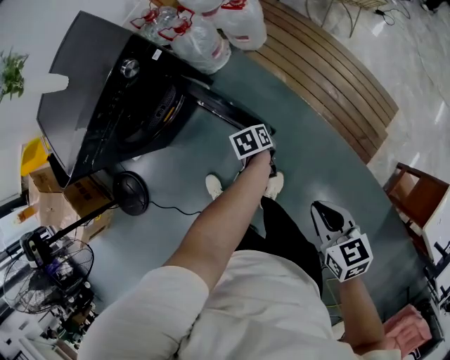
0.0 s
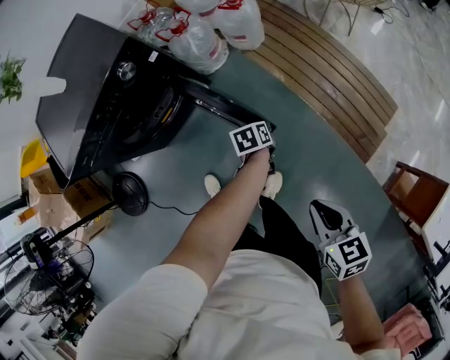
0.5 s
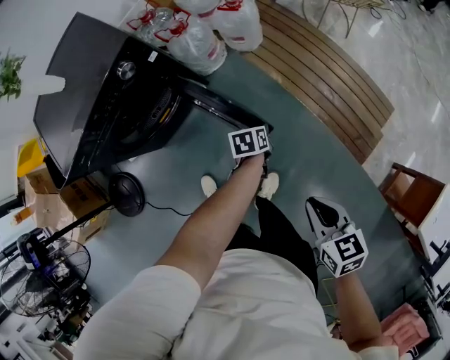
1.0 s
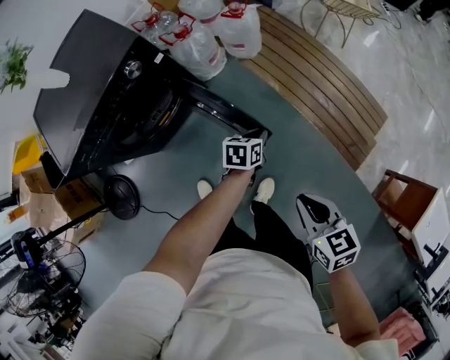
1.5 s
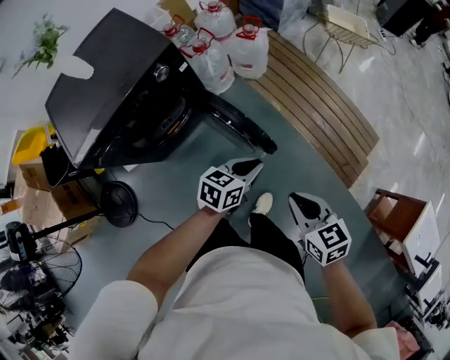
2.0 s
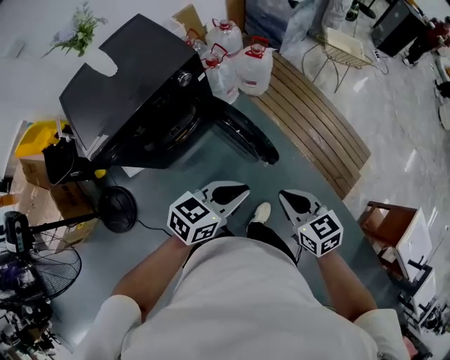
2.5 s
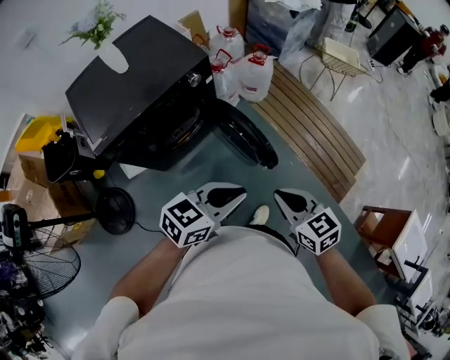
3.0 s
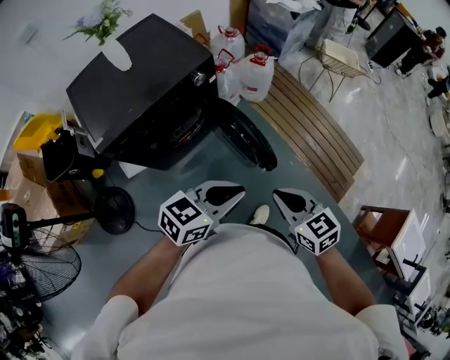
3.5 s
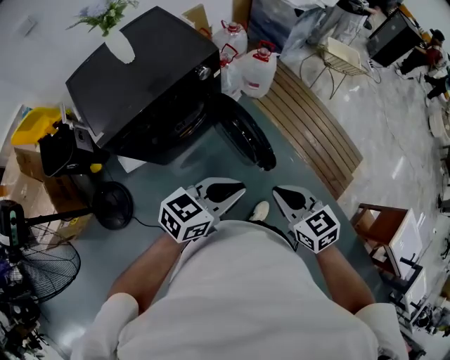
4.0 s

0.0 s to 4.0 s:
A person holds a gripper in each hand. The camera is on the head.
0.0 to 2.0 s: The left gripper shifts approximately 20 cm upward, and changes its angle by roughly 50 degrees; the right gripper shifts some 10 cm to the left.
2.0 to 4.0 s: The right gripper goes about 15 cm to the left and upward; the left gripper moves upward, to the left and backward, some 25 cm.

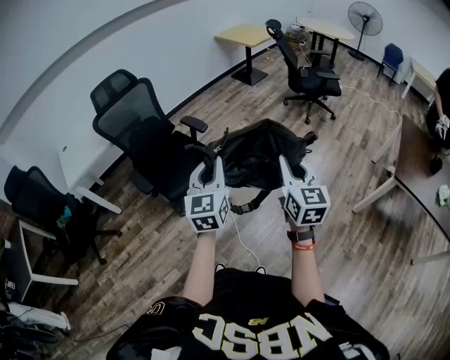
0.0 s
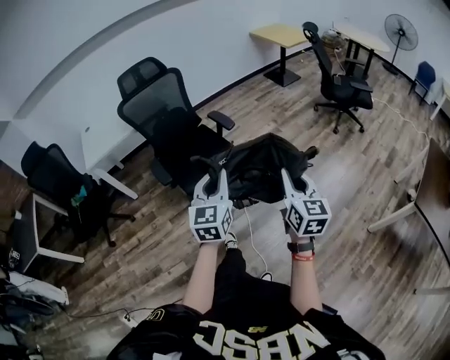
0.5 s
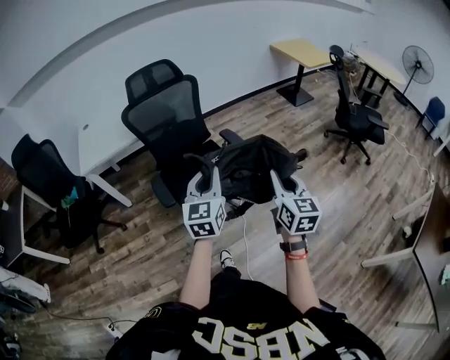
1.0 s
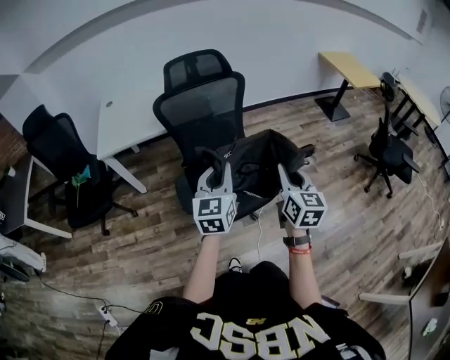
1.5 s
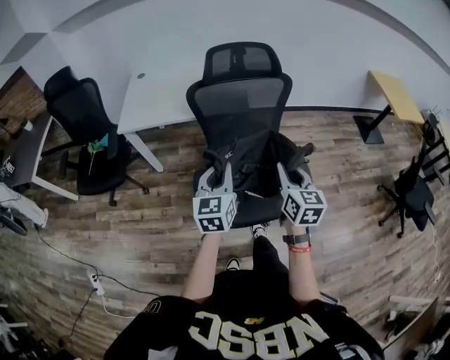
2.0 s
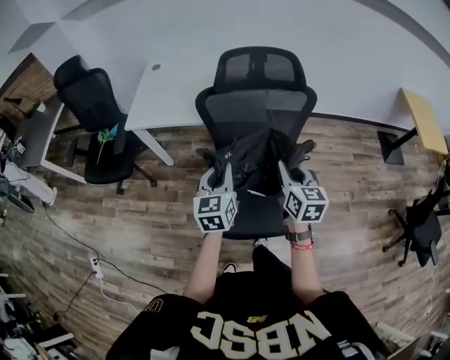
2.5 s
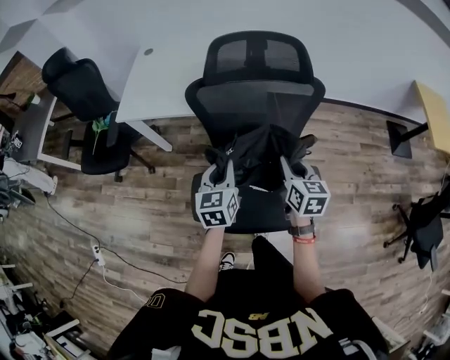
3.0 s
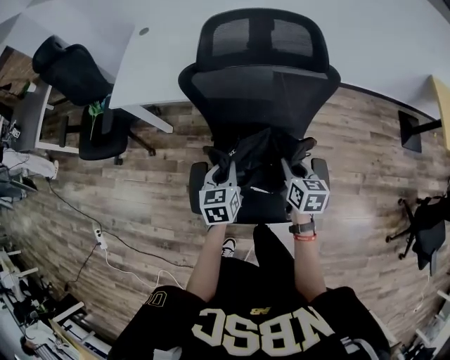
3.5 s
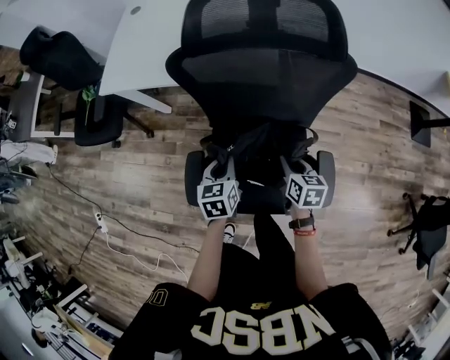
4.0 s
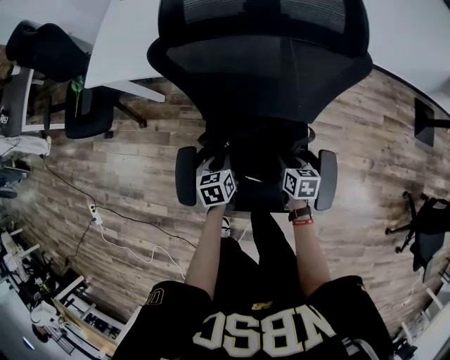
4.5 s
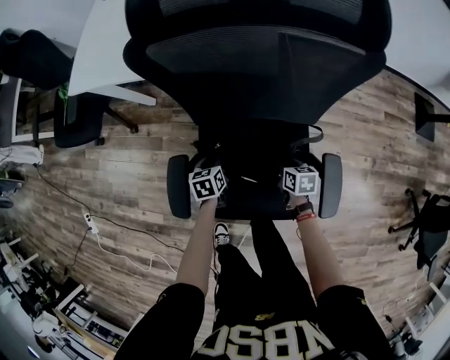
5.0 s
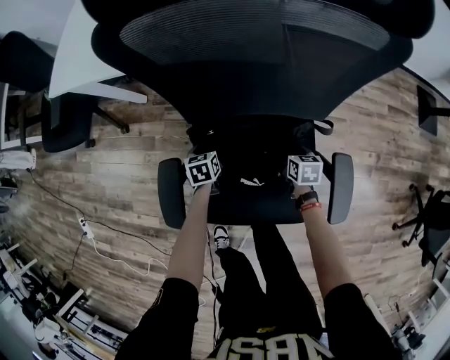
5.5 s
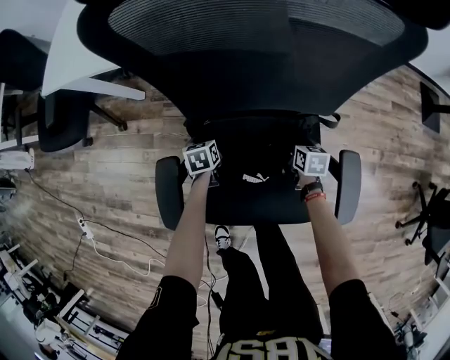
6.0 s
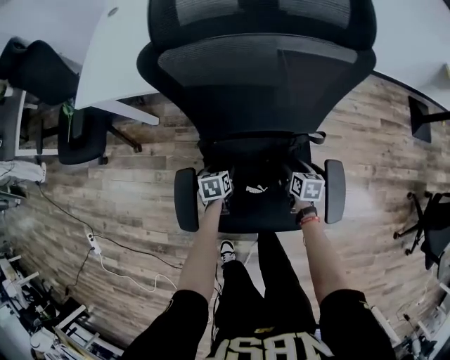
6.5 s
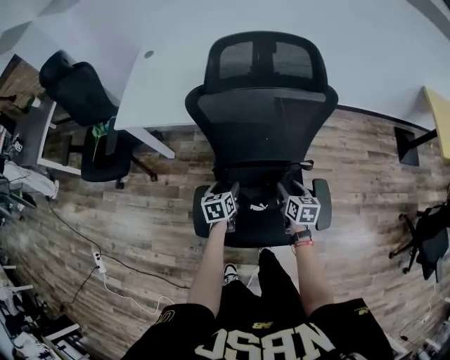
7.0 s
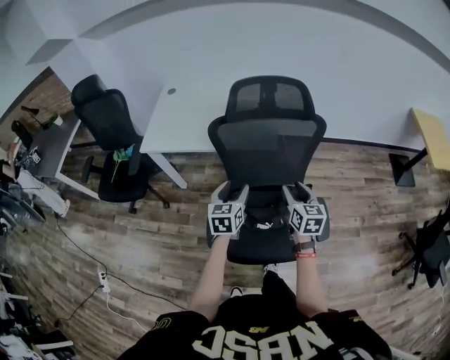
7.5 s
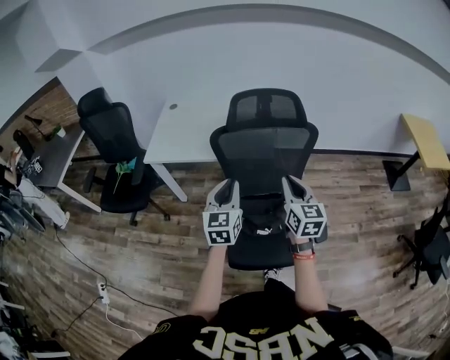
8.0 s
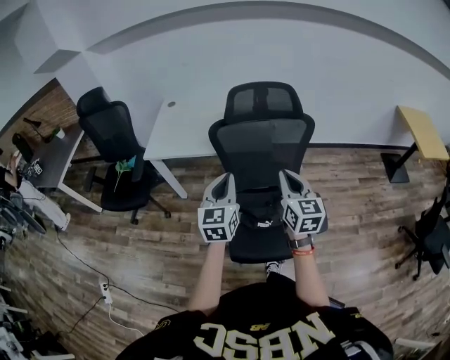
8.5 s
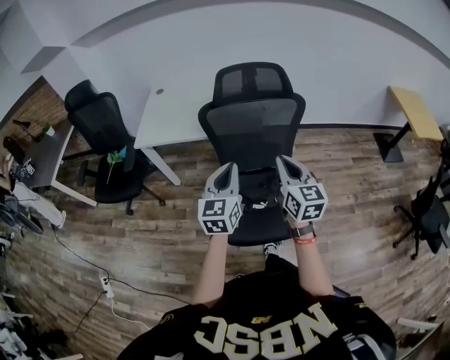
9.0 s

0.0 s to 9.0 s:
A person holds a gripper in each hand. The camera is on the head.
0.0 to 2.0 s: The pair of grippers is taken about 60 cm. The right gripper swivels some 40 degrees, while the left gripper rotates some 40 degrees.
2.0 to 4.5 s: Both grippers travel together downward and forward, roughly 40 cm. The right gripper angles its fingers downward, by some 30 degrees, while the left gripper tips its fingers downward by about 40 degrees.
4.5 to 7.0 s: The right gripper moves about 20 cm downward and comes back, and opens, while the left gripper reaches some 20 cm downward, then returns, and opens its fingers.
7.0 to 9.0 s: Both grippers move upward, roughly 35 cm. The right gripper points its fingers some 30 degrees further upward, and closes its fingers. The left gripper points its fingers some 40 degrees further upward, and closes up.

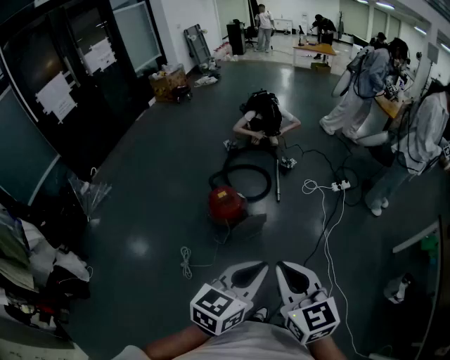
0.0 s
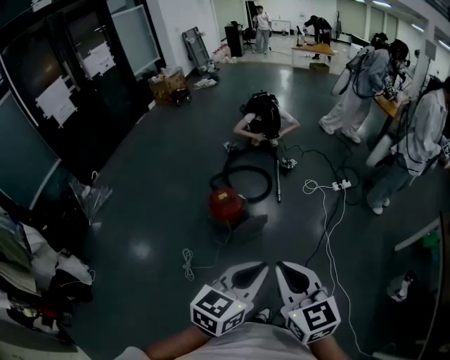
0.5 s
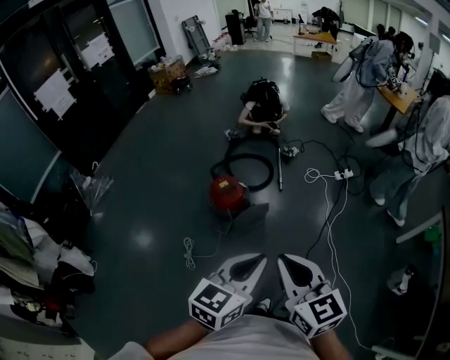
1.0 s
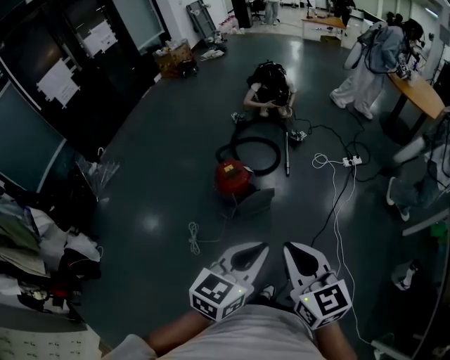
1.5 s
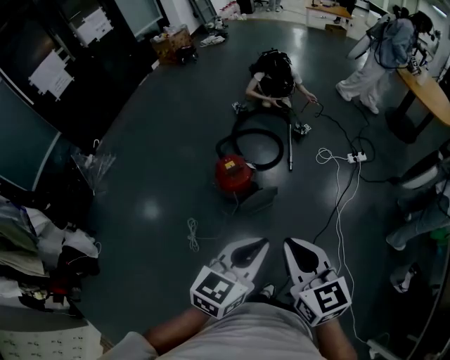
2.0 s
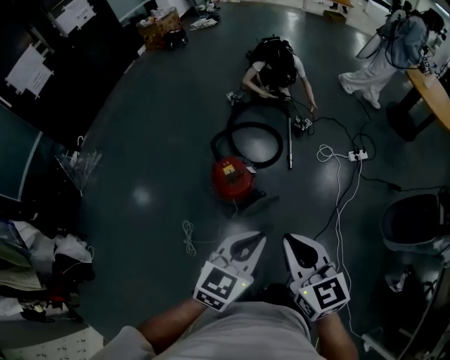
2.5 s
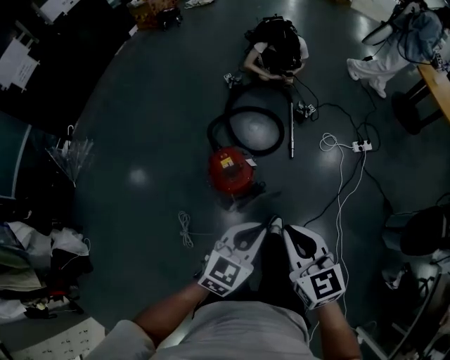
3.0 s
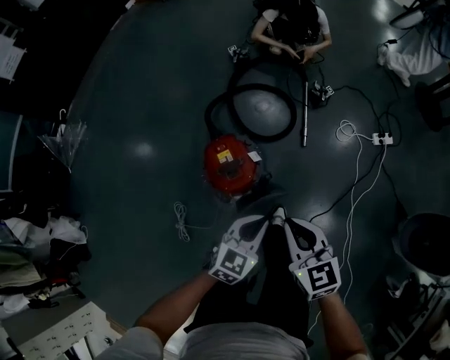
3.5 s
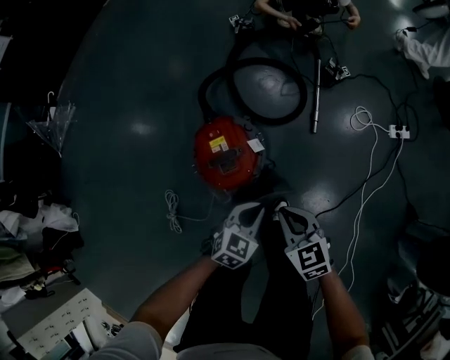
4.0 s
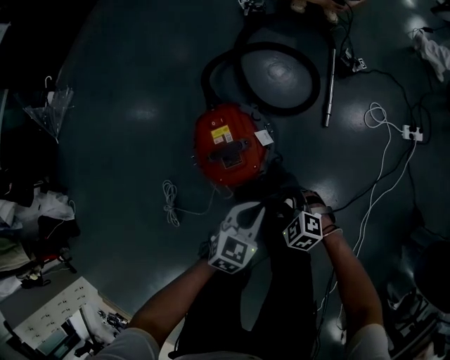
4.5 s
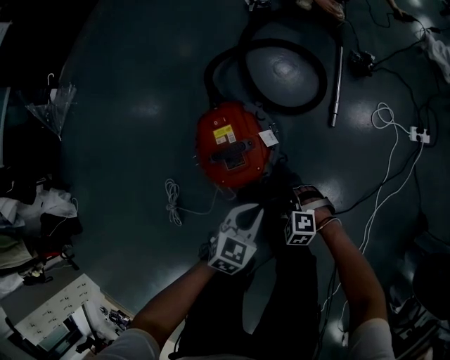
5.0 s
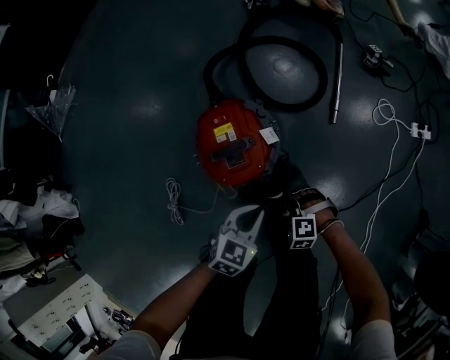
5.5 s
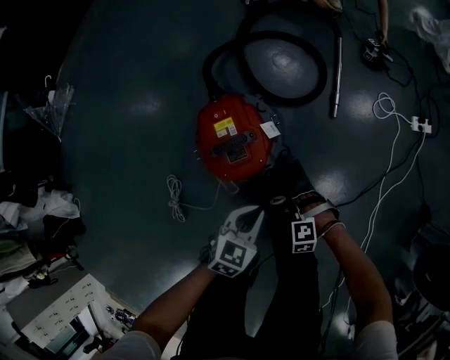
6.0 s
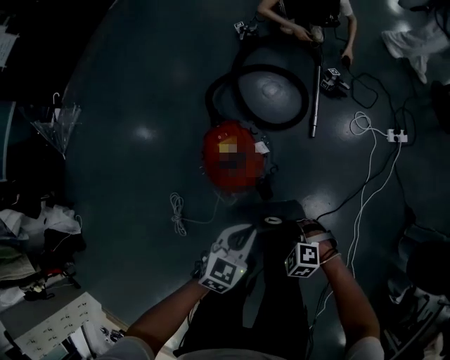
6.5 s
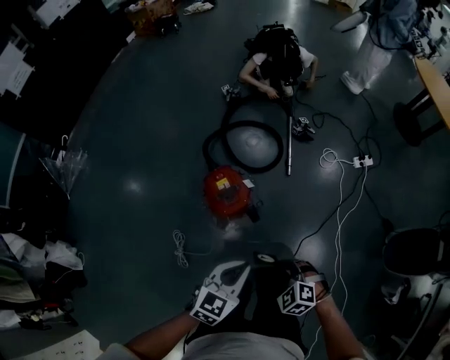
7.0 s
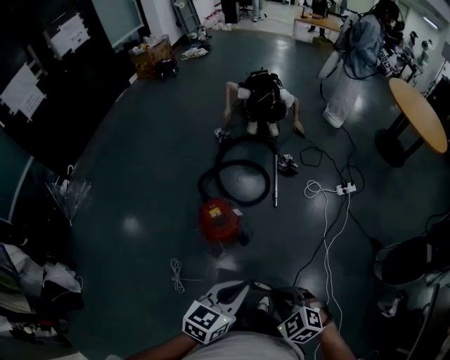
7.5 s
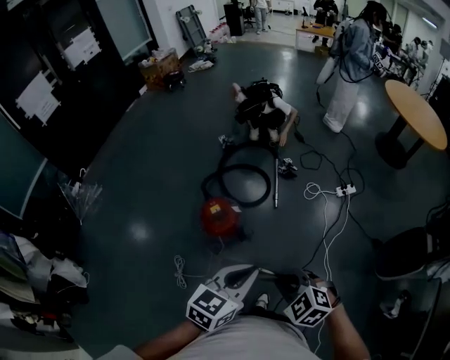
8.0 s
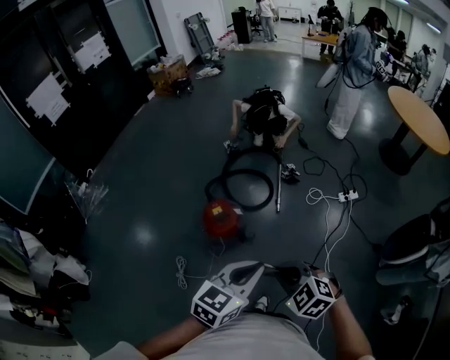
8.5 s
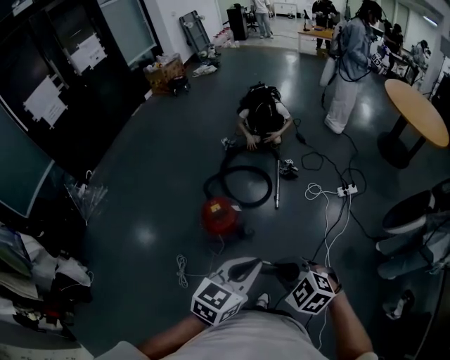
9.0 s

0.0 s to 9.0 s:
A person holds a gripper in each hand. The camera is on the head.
0.0 to 2.0 s: The grippers both shift forward by some 10 cm.
2.0 to 4.5 s: Both grippers move downward and forward, roughly 70 cm. The left gripper turns by roughly 20 degrees, while the right gripper angles its fingers downward, by about 40 degrees, and opens its fingers.
4.5 to 7.0 s: The right gripper travels upward and backward by roughly 40 cm, and closes, while the left gripper goes about 35 cm upward.
7.0 to 9.0 s: The right gripper heads upward and to the right, covering about 25 cm, while the left gripper heads upward, to the right and backward, covering roughly 30 cm.

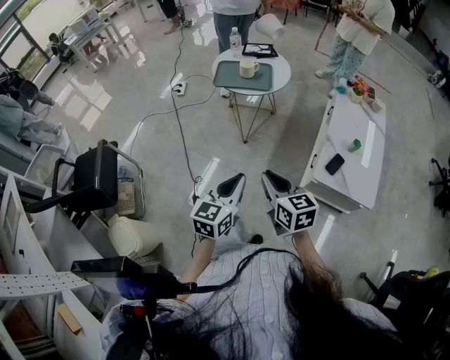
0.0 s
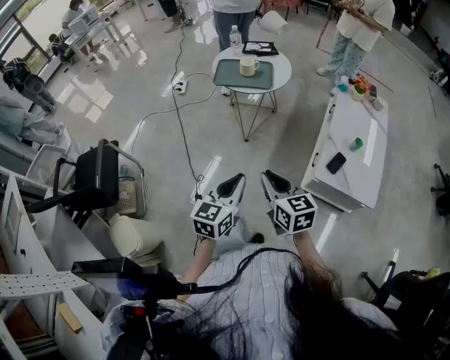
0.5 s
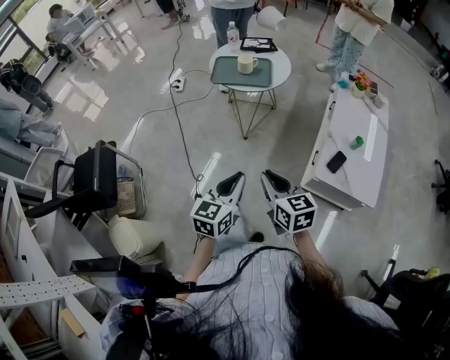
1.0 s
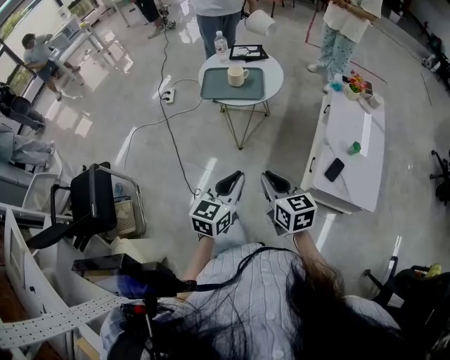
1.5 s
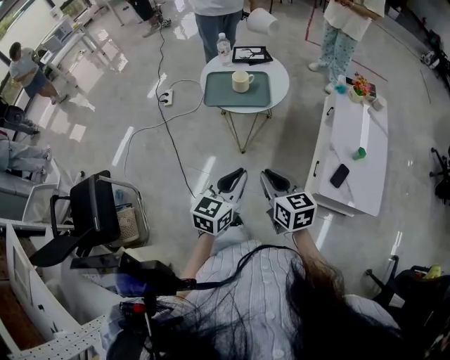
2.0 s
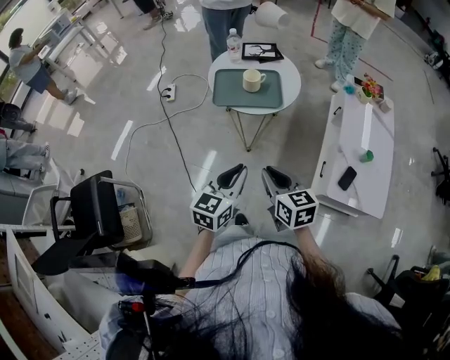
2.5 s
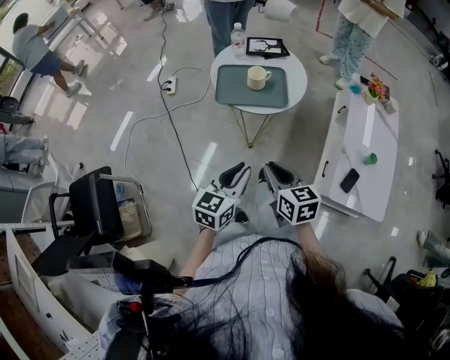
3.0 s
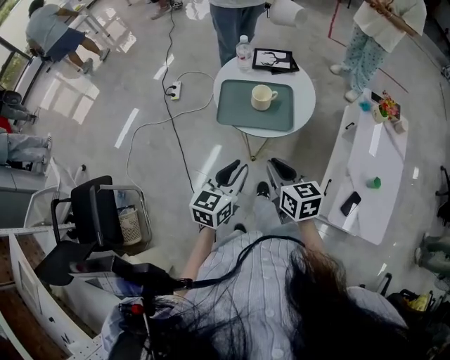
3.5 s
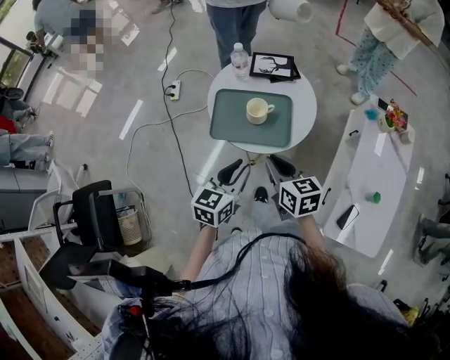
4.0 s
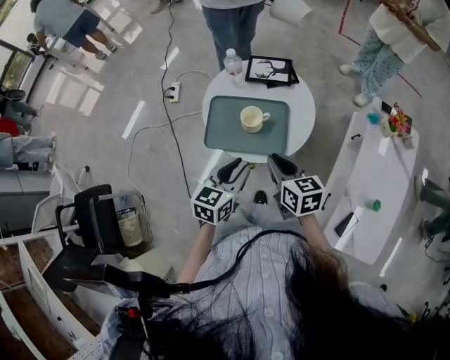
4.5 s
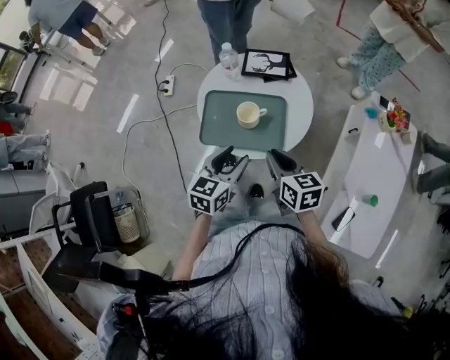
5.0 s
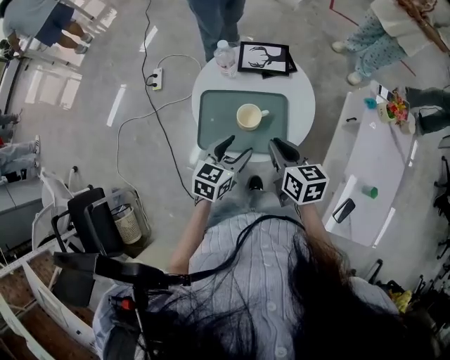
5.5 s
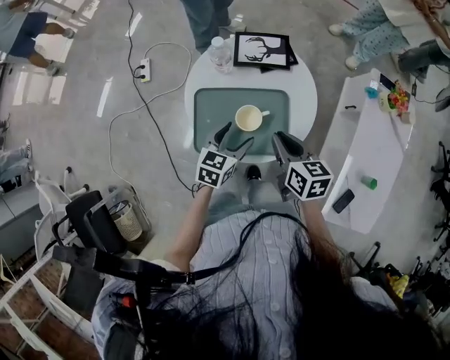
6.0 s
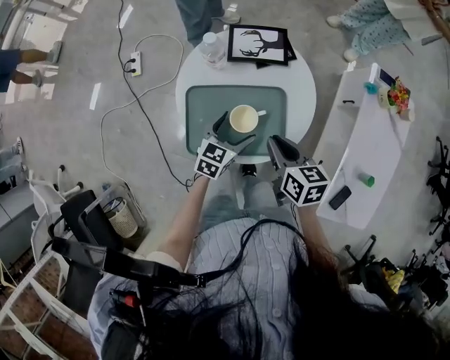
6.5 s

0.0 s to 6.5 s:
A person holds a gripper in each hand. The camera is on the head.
0.0 to 2.0 s: The grippers both shift forward by about 20 cm.
2.0 to 4.5 s: The two grippers go about 35 cm forward.
4.5 to 6.5 s: The right gripper goes some 10 cm forward and downward, while the left gripper heads forward and downward, covering some 20 cm, and opens its fingers.
